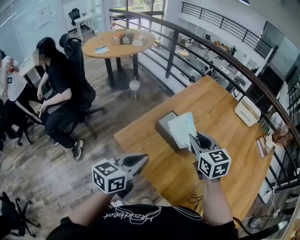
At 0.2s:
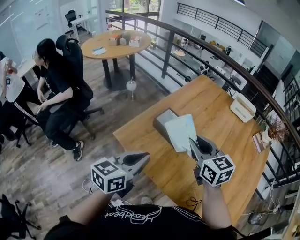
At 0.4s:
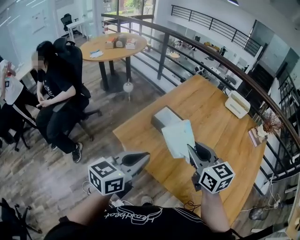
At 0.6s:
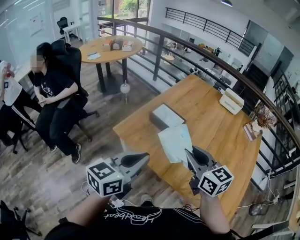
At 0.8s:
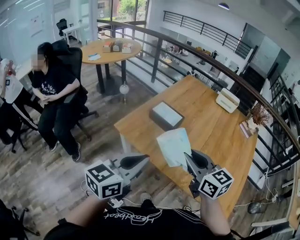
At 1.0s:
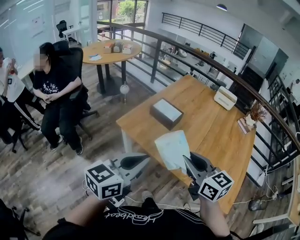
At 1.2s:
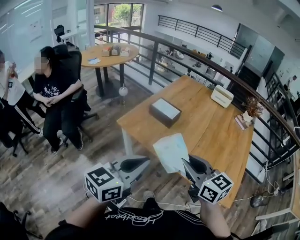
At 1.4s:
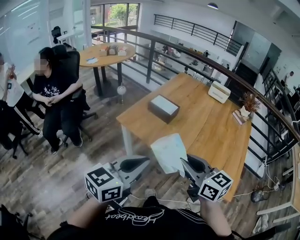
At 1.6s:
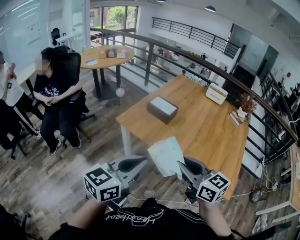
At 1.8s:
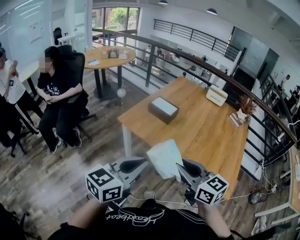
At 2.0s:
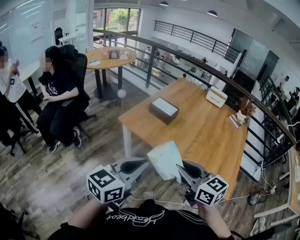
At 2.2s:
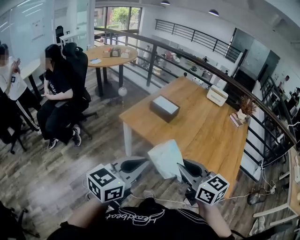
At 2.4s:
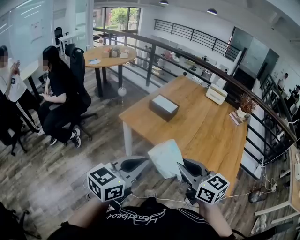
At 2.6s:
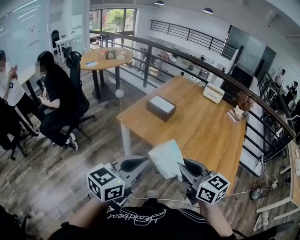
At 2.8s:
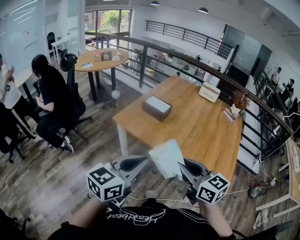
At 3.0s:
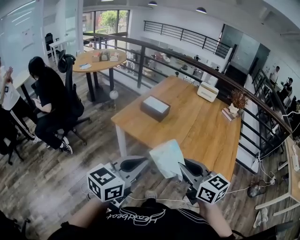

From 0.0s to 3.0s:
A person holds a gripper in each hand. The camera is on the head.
From 0.0s to 1.6s: Both grippers move backward, some 40 cm.
From 1.6s to 3.0s: The right gripper shifts roughly 5 cm backward.

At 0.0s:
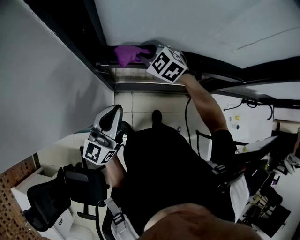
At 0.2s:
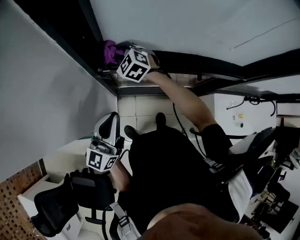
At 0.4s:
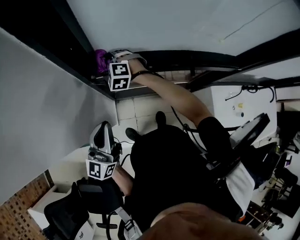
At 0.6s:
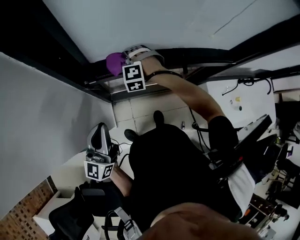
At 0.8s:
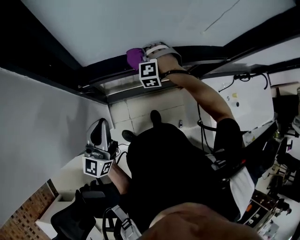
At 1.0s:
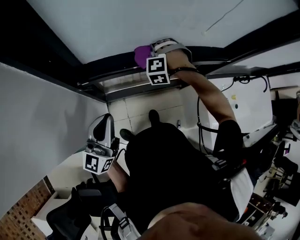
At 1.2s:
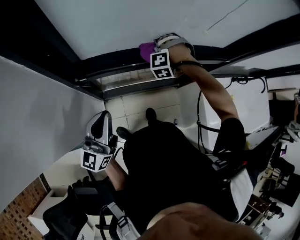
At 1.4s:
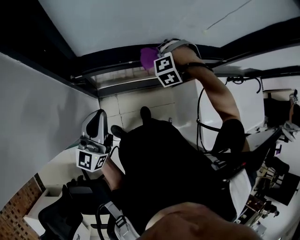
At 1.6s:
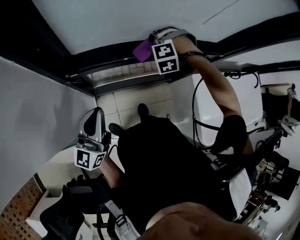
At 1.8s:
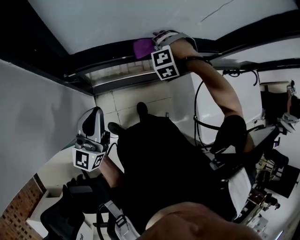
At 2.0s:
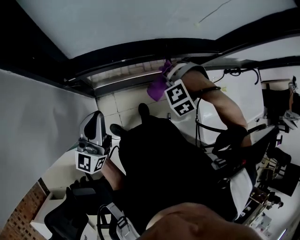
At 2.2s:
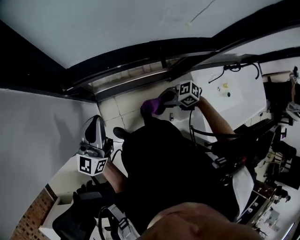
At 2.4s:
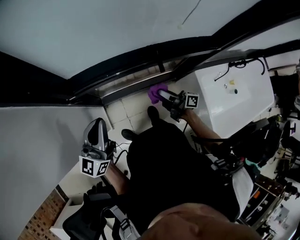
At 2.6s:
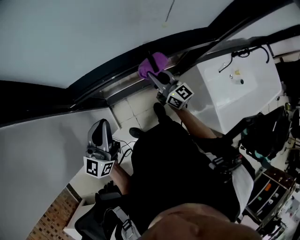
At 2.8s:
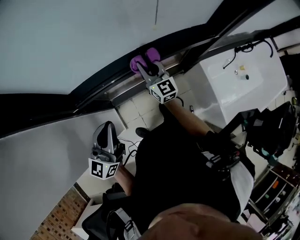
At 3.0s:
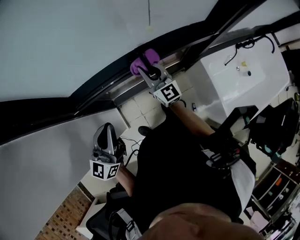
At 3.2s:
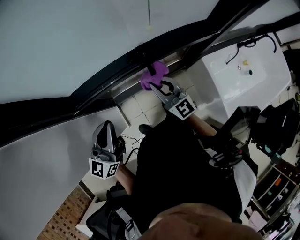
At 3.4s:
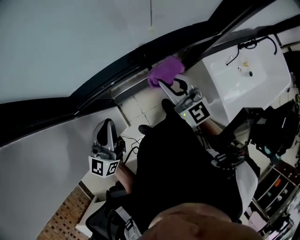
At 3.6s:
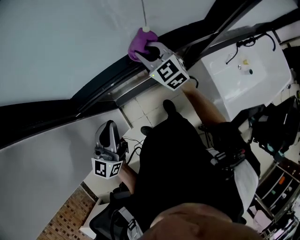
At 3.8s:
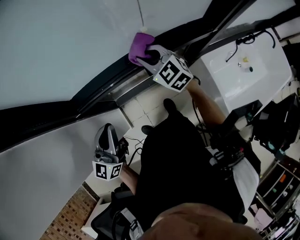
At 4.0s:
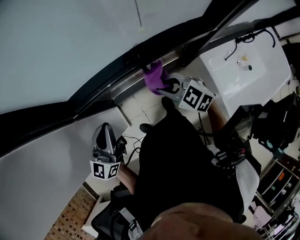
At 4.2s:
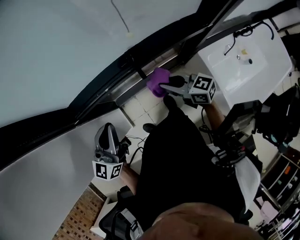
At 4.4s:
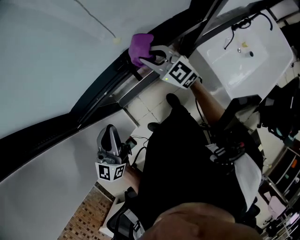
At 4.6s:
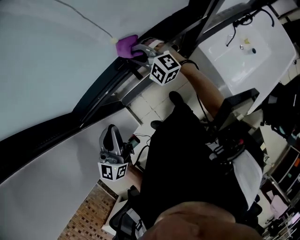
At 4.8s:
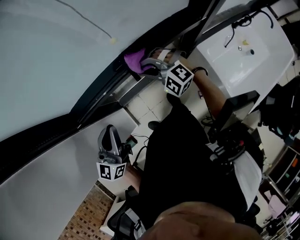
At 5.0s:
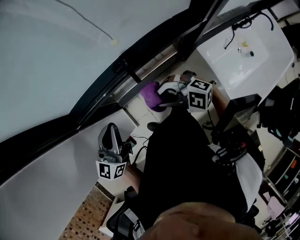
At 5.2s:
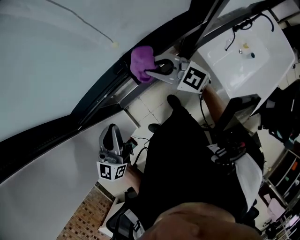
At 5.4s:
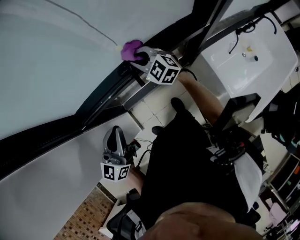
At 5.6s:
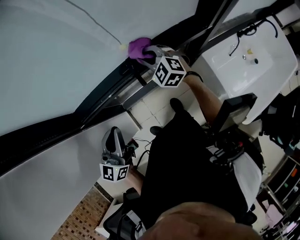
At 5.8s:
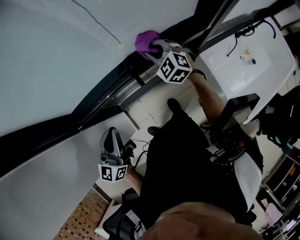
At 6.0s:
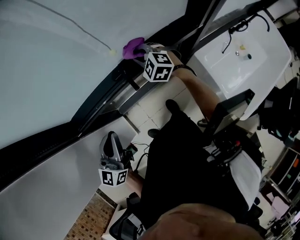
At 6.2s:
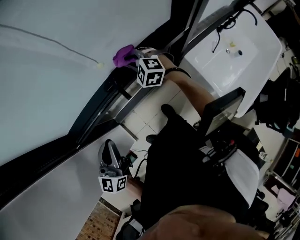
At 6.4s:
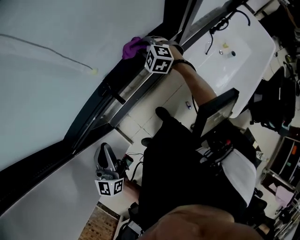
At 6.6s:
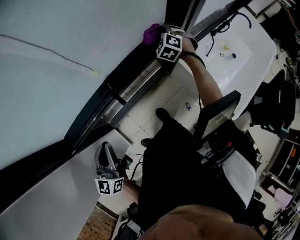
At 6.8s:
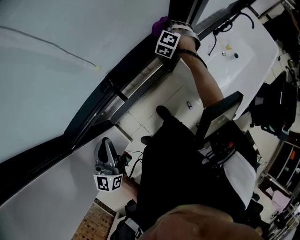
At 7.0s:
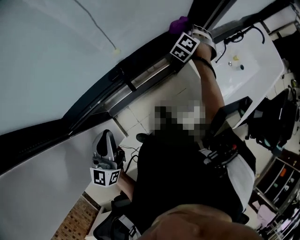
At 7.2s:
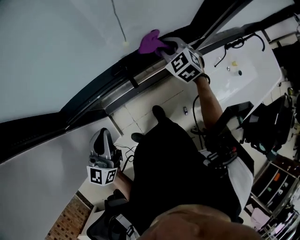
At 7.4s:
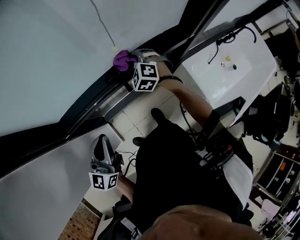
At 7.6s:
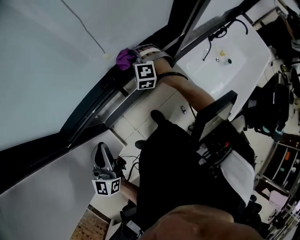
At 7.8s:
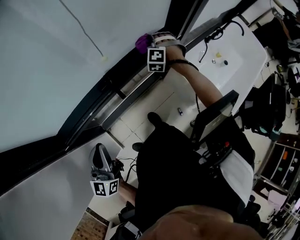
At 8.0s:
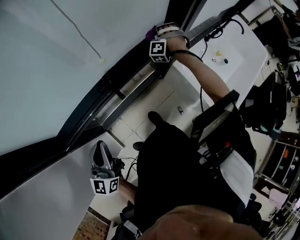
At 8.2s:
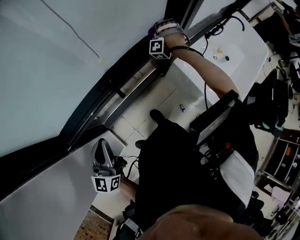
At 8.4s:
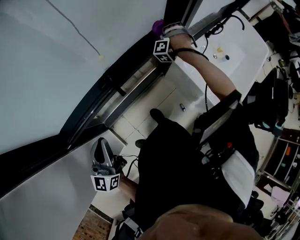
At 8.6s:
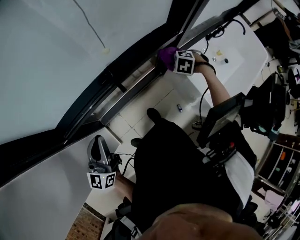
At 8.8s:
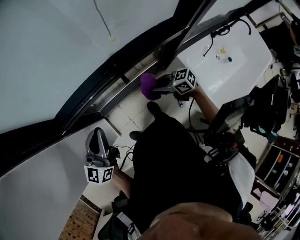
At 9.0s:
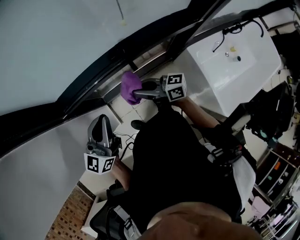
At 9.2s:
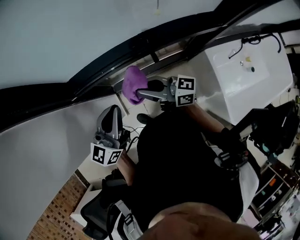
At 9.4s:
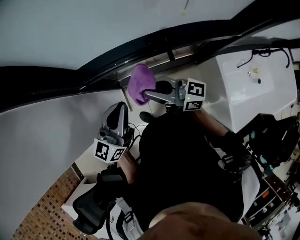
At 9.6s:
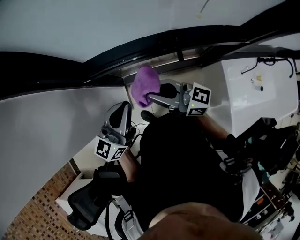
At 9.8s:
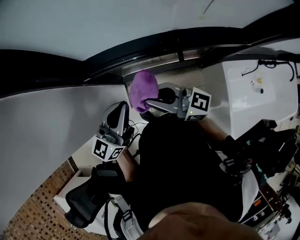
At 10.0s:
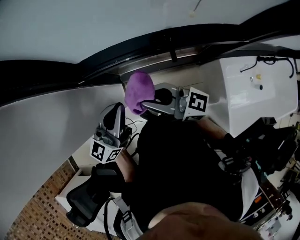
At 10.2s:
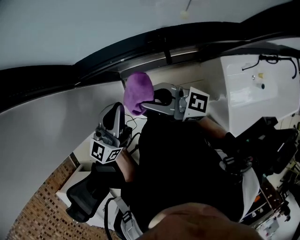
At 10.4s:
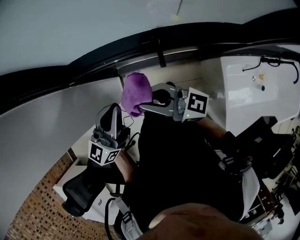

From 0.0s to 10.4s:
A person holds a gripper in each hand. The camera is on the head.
From 0.0s to 1.4s: The right gripper ends up some 25 cm from where it was, and turns by roughly 70 degrees.
From 1.4s to 3.0s: The left gripper ends up some 10 cm from where it was, while the right gripper travels downward and back again, roughly 10 cm each way, and tilts its fingers about 60 degrees upward.
From 3.0s to 4.4s: The right gripper moves forward and backward over roughly 15 cm, changing direction 3 times, and rotates about 20 degrees. Meanwhile the left gripper ends up roughly 5 cm from where it was.
From 4.4s to 6.0s: The right gripper goes roughly 5 cm downward, moves roughly 15 cm backward and comes back, and changes its angle by some 30 degrees.
From 7.4s to 9.0s: The right gripper reaches approximately 10 cm downward, then returns, and tilts its fingers approximately 40 degrees upward.
From 9.0s to 10.4s: The right gripper moves upward, approximately 10 cm, and turns by approximately 20 degrees.

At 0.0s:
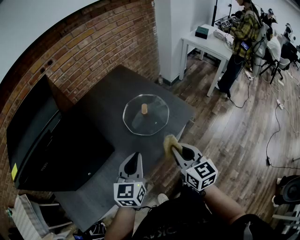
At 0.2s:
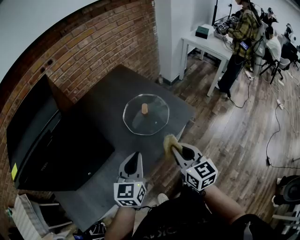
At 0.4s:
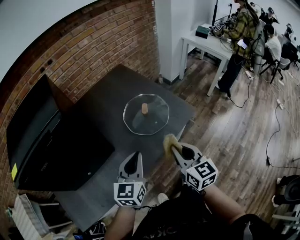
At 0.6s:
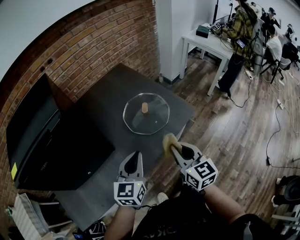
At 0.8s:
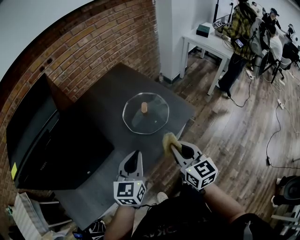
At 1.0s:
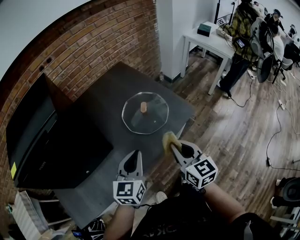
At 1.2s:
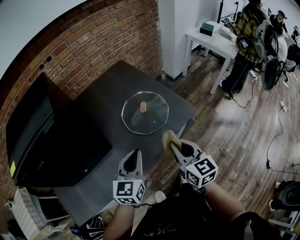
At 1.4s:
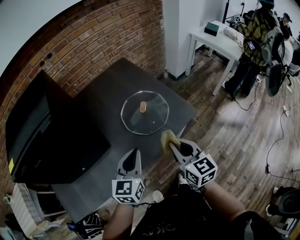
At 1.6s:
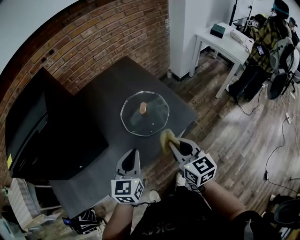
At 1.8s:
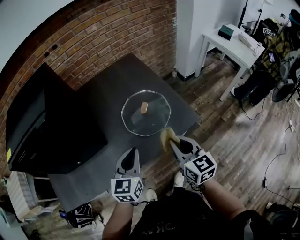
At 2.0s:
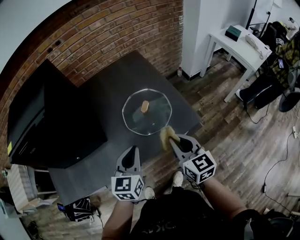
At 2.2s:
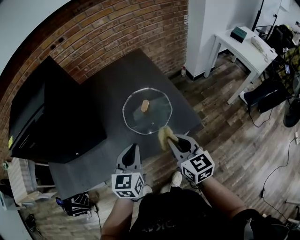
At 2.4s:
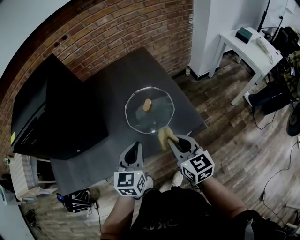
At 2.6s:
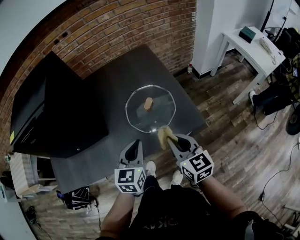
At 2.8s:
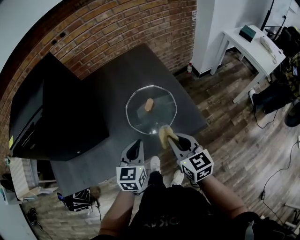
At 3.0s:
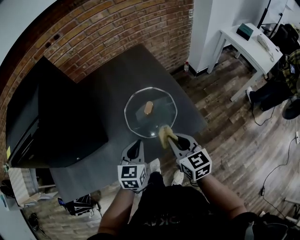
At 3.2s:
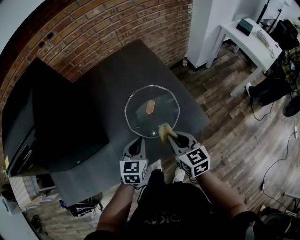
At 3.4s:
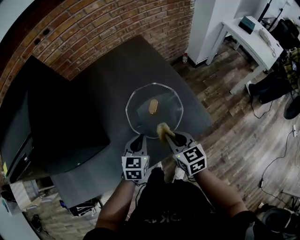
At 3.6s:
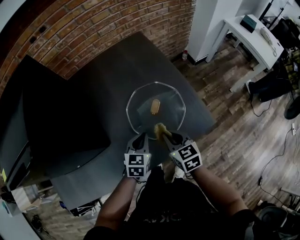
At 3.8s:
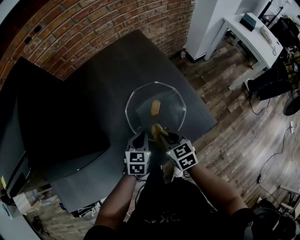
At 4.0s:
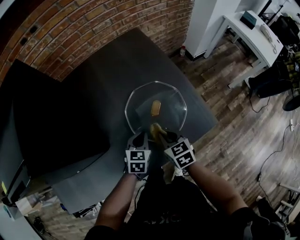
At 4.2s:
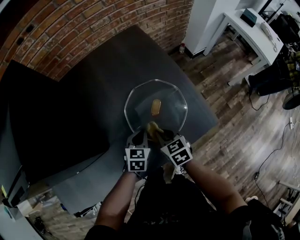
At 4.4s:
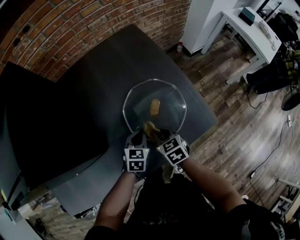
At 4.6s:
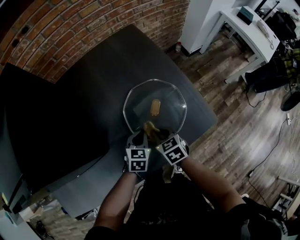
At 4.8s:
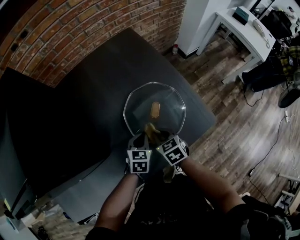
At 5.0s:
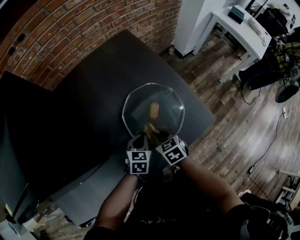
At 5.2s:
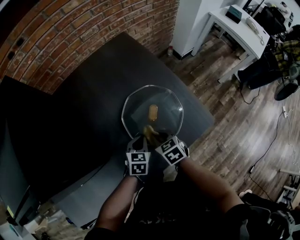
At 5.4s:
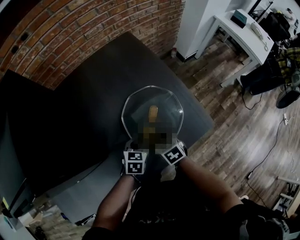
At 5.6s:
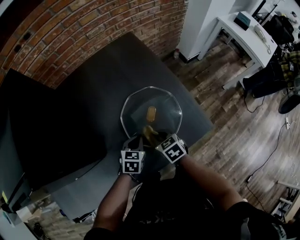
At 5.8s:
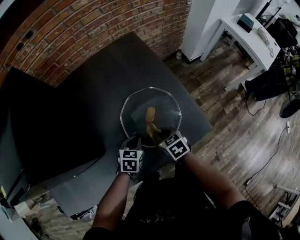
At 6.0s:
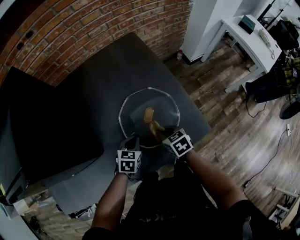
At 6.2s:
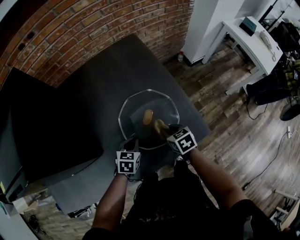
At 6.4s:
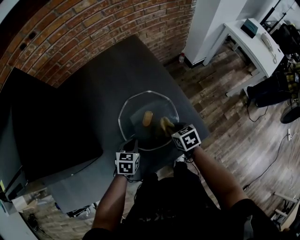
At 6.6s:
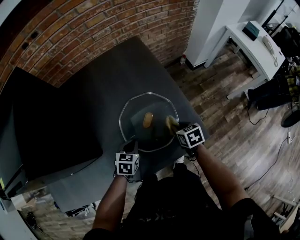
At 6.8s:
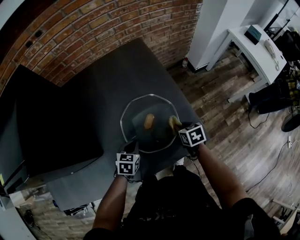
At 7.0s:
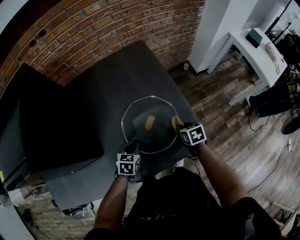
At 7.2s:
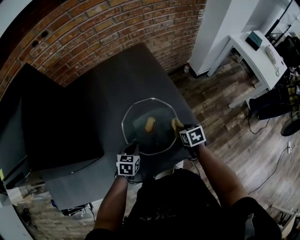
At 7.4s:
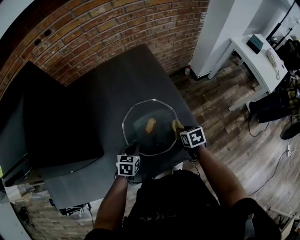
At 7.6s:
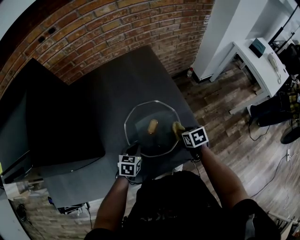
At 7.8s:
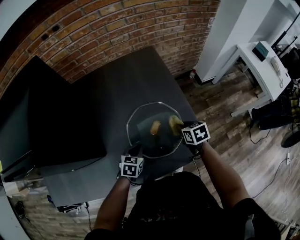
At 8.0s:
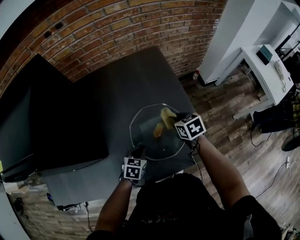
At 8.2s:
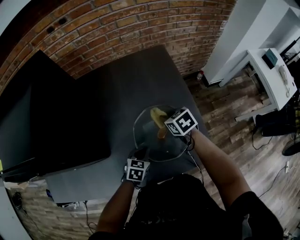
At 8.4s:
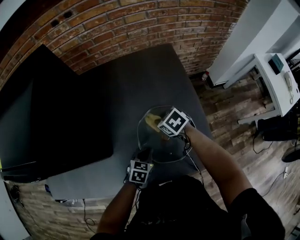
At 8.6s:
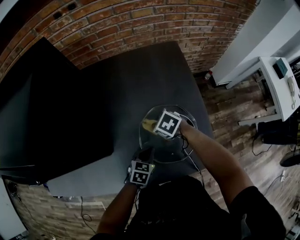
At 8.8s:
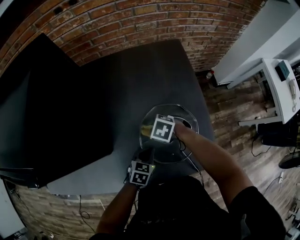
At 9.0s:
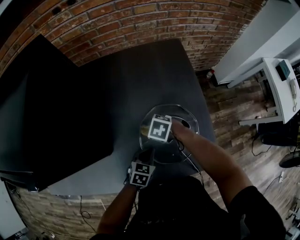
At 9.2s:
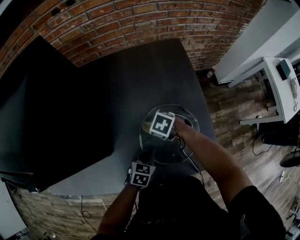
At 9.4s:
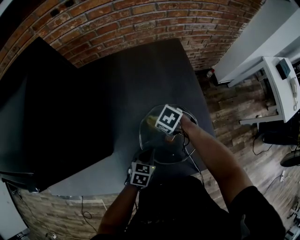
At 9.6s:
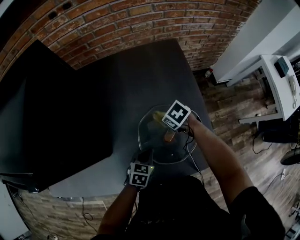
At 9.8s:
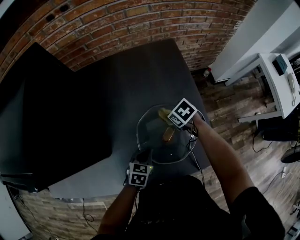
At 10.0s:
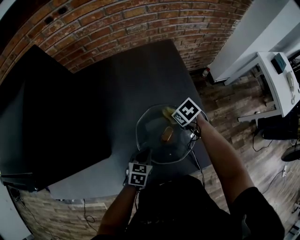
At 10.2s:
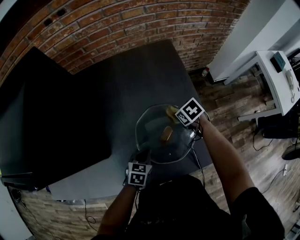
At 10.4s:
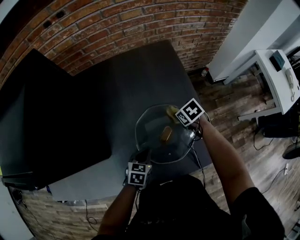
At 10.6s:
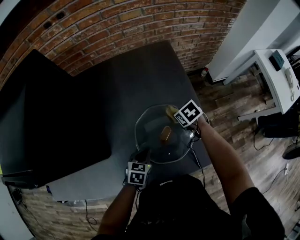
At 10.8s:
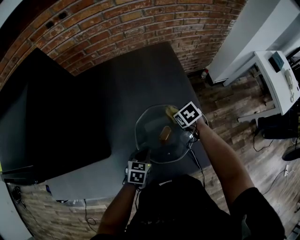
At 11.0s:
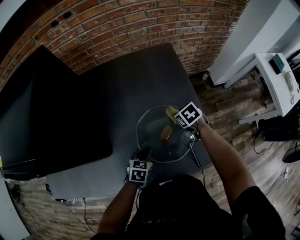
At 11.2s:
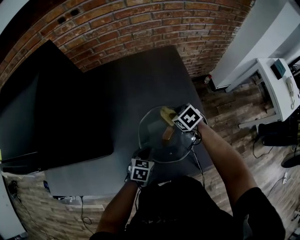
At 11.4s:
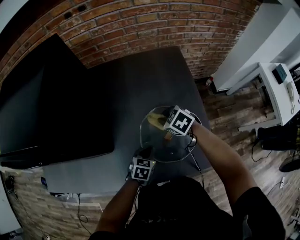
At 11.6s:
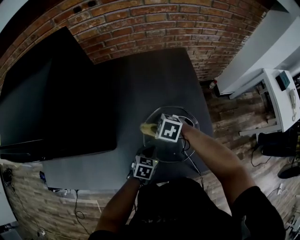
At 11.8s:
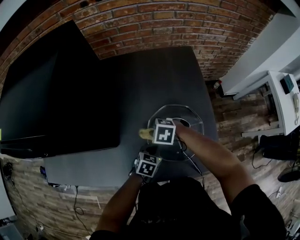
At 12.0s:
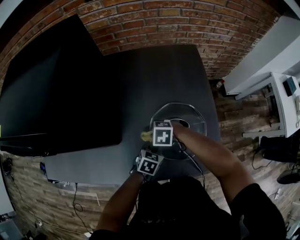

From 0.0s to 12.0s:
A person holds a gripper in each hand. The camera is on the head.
From 0.0s to 1.6s: The left gripper changes place by roughly 5 cm. Meanwhile the right gripper heads forward, covering some 5 cm.
From 1.6s to 3.0s: The two grippers go approximately 10 cm forward and downward.
From 3.0s to 4.4s: The left gripper heads downward and forward, covering roughly 20 cm. Meanwhile the right gripper moves downward, forward and to the left, approximately 20 cm, and changes its angle by roughly 30 degrees.
From 4.4s to 6.0s: The right gripper moves to the right, some 5 cm.
From 6.0s to 7.6s: The right gripper travels to the right by about 10 cm.
From 7.6s to 9.0s: The right gripper moves approximately 25 cm, and twists roughly 60 degrees counterclockwise, seen from behind.
From 9.0s to 10.4s: The right gripper changes place by roughly 20 cm, and changes its angle by roughly 40 degrees.
From 10.4s to 12.0s: The right gripper changes place by about 25 cm, and twists some 60 degrees counterclockwise, seen from behind.
